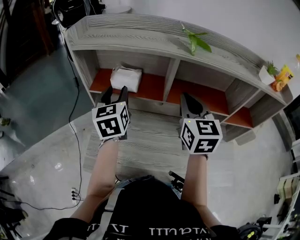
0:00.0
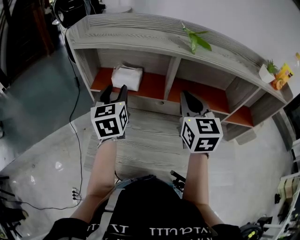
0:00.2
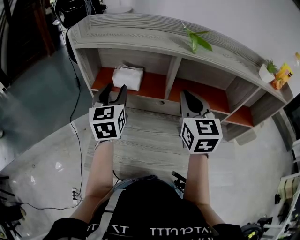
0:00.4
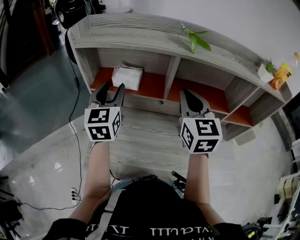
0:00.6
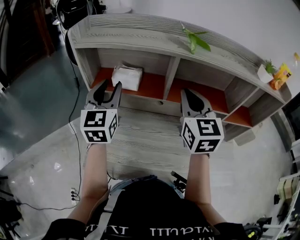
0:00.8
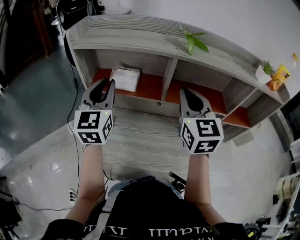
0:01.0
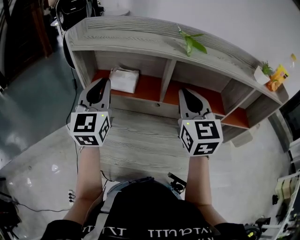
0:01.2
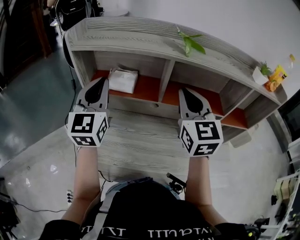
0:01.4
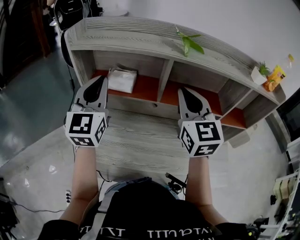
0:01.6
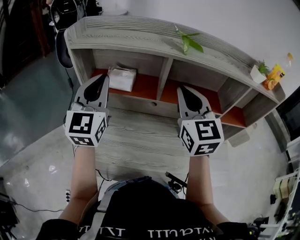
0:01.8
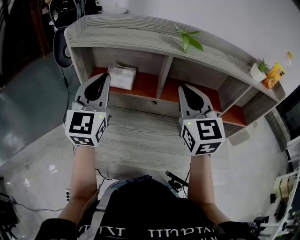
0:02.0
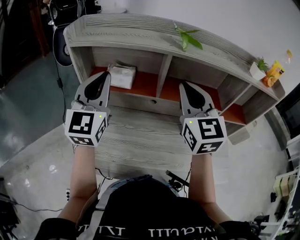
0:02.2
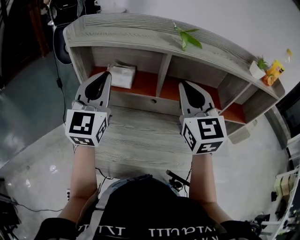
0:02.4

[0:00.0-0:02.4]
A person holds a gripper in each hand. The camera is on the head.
0:00.0 to 0:01.2: The left gripper travels upward by roughly 10 cm, turns by approximately 30 degrees, and closes its fingers.
0:01.2 to 0:02.4: The grippers move only a little.

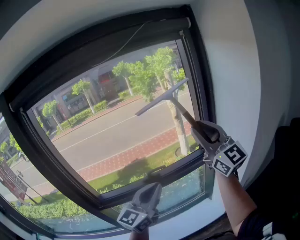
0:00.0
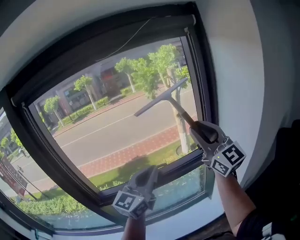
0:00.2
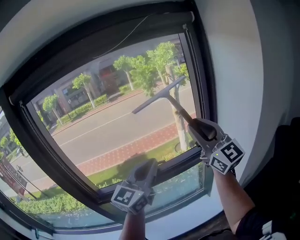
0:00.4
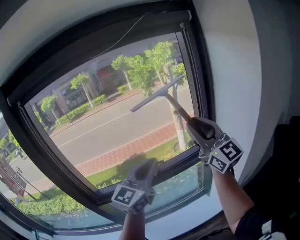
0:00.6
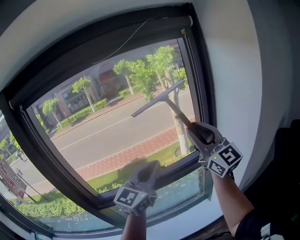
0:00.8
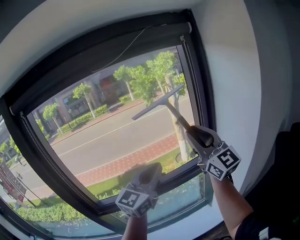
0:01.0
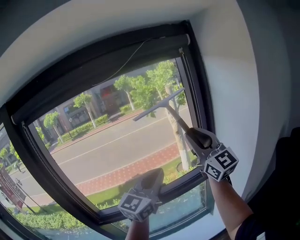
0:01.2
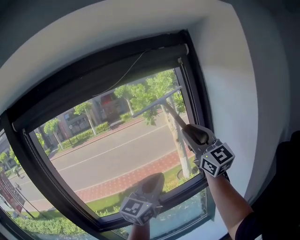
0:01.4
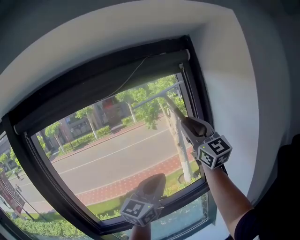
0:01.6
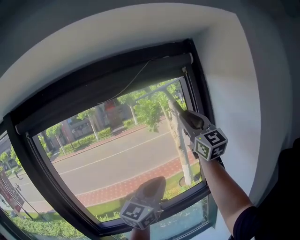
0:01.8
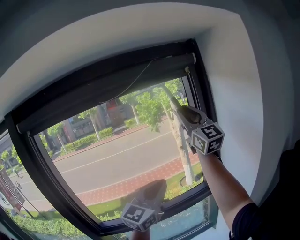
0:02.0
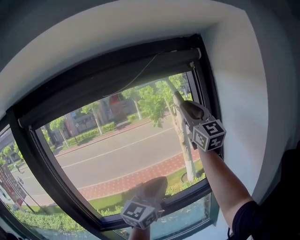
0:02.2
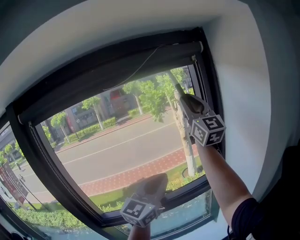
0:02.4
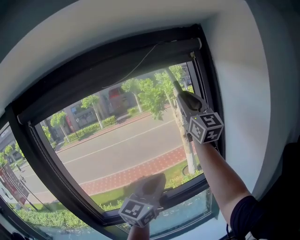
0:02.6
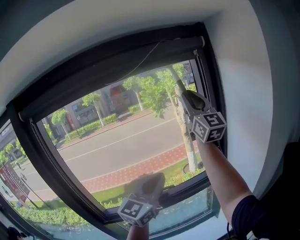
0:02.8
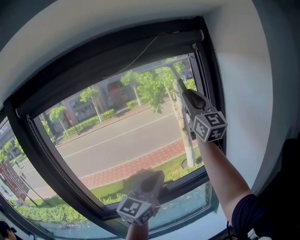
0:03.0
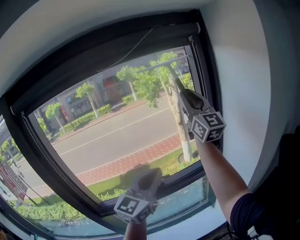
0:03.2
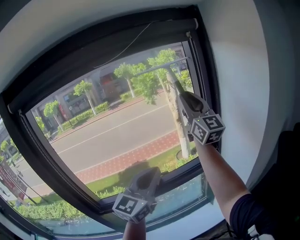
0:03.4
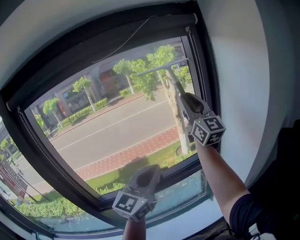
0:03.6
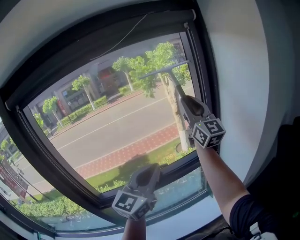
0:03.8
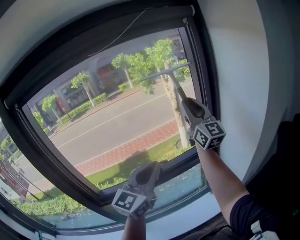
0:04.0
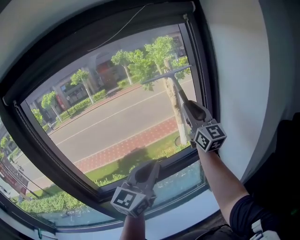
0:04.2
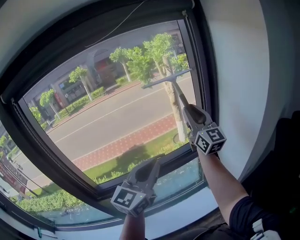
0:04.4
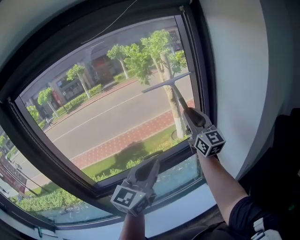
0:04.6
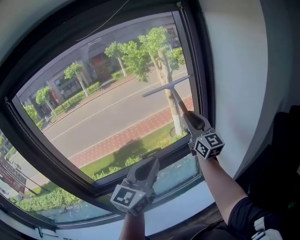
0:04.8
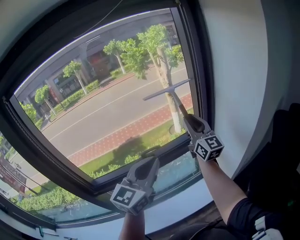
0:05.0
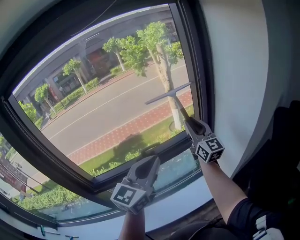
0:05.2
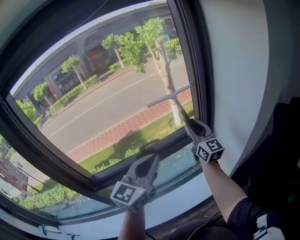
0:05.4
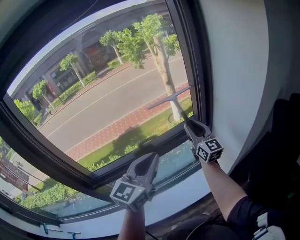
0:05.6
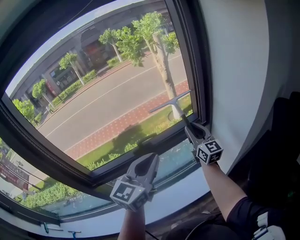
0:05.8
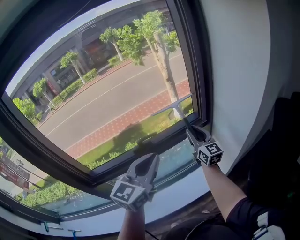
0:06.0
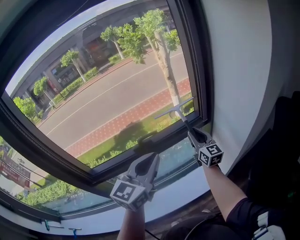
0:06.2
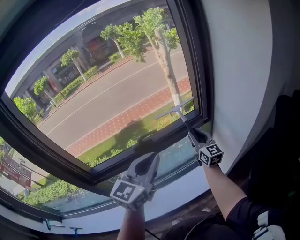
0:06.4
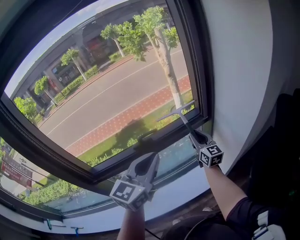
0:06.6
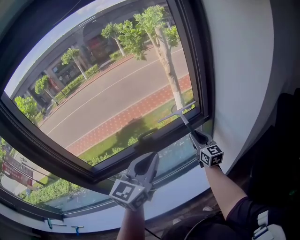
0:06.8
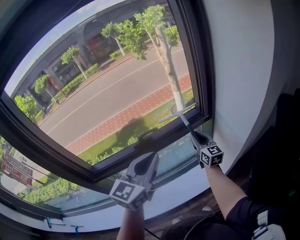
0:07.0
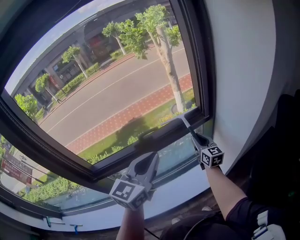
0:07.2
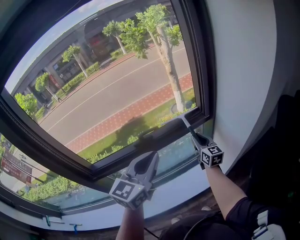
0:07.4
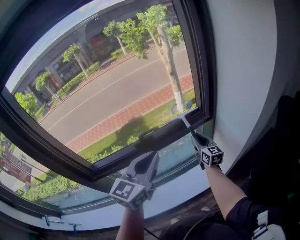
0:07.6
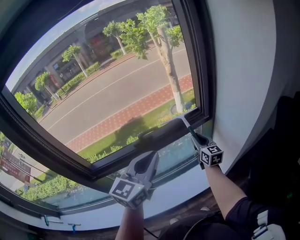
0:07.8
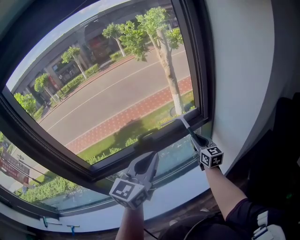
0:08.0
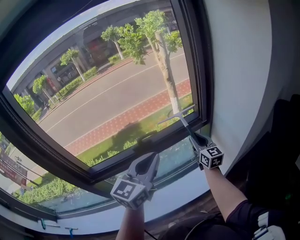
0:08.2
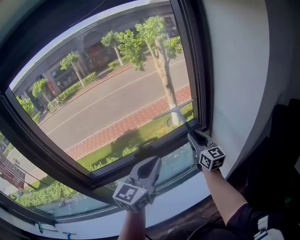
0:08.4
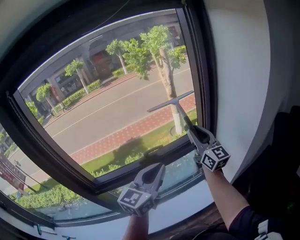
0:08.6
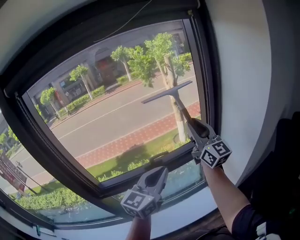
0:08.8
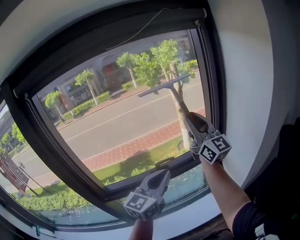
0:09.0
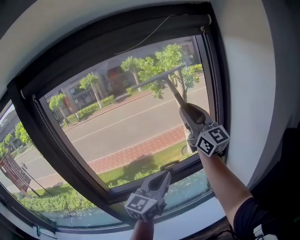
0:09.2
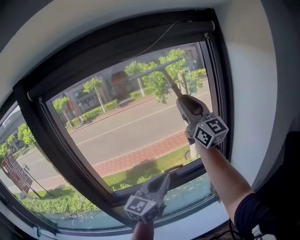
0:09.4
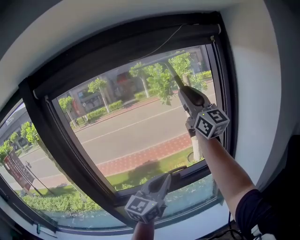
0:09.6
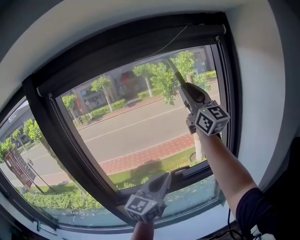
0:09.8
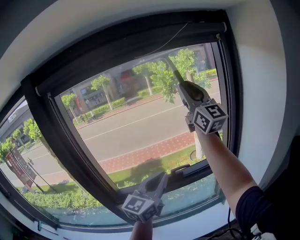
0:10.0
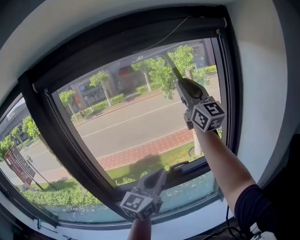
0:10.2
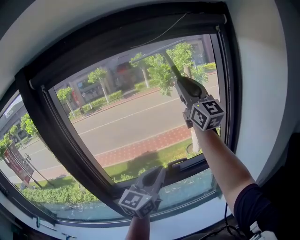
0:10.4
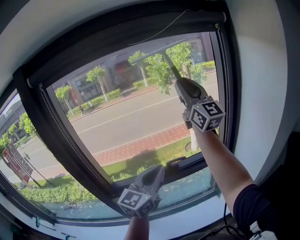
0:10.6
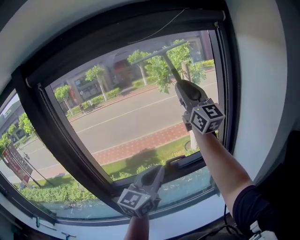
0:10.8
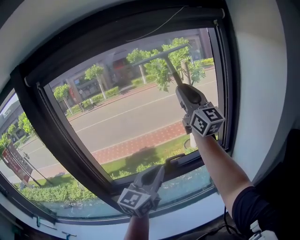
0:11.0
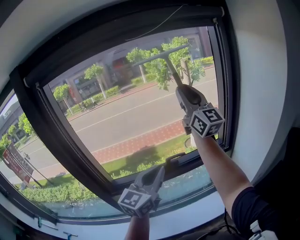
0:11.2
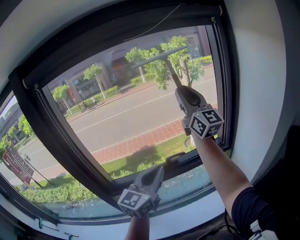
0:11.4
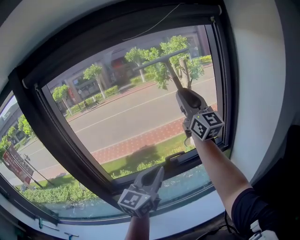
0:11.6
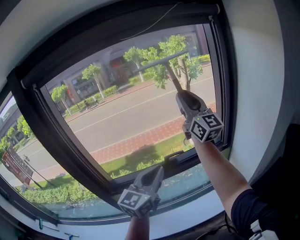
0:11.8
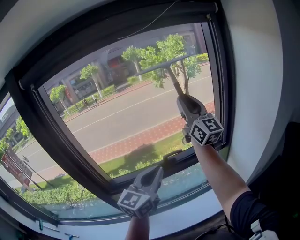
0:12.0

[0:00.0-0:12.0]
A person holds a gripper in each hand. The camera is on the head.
0:00.0 to 0:01.6: The right gripper moves upward and forward, roughly 15 cm. The left gripper is displaced upward, forward and to the right by some 15 cm.
0:01.6 to 0:03.0: The right gripper changes place by about 5 cm. Meanwhile the left gripper moves some 5 cm.
0:03.0 to 0:04.4: The right gripper is displaced downward by some 20 cm; the left gripper is displaced downward by about 5 cm.
0:04.4 to 0:06.0: The left gripper is displaced downward by some 5 cm; the right gripper goes approximately 25 cm downward, and changes its angle by some 20 degrees.
0:06.0 to 0:07.6: The right gripper heads downward, covering some 10 cm.
0:07.6 to 0:09.0: The right gripper heads upward, covering some 40 cm, and angles its fingers upward, by some 40 degrees.
0:09.0 to 0:10.4: The left gripper is displaced to the left by approximately 5 cm, while the right gripper goes about 15 cm upward and to the left.
0:10.4 to 0:12.0: The right gripper heads downward, covering approximately 10 cm.

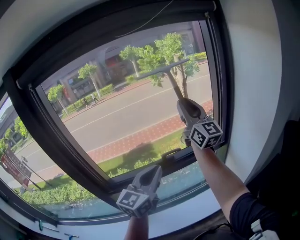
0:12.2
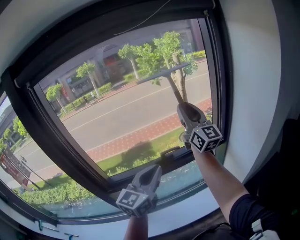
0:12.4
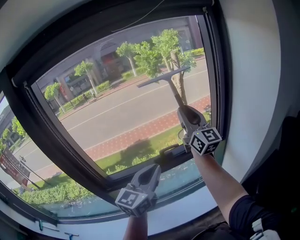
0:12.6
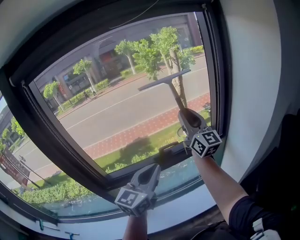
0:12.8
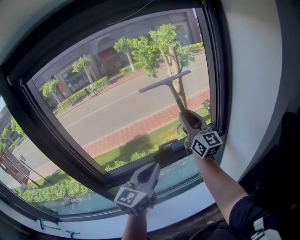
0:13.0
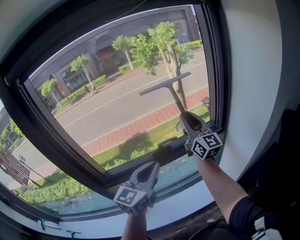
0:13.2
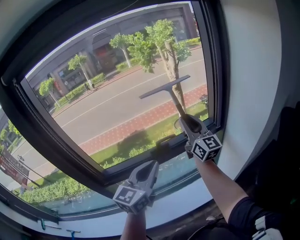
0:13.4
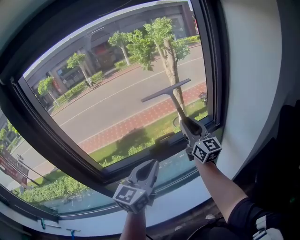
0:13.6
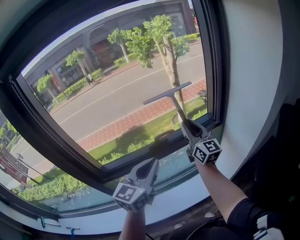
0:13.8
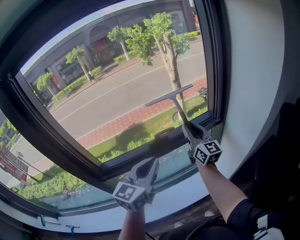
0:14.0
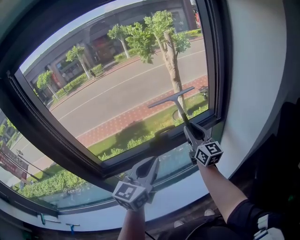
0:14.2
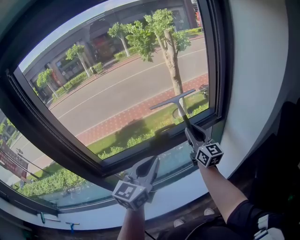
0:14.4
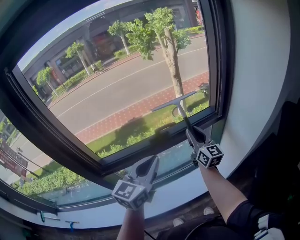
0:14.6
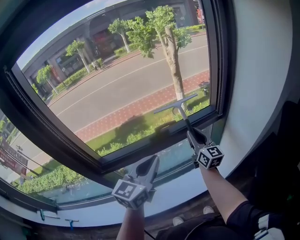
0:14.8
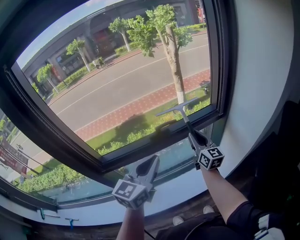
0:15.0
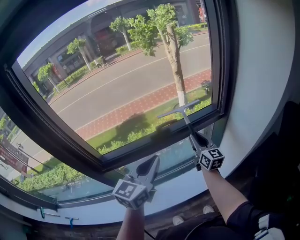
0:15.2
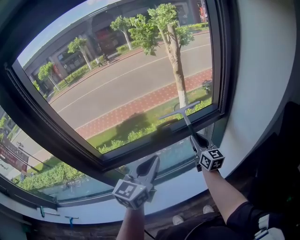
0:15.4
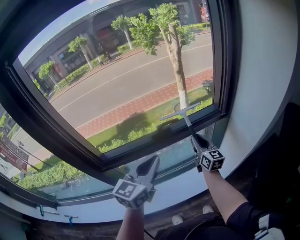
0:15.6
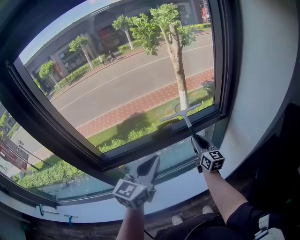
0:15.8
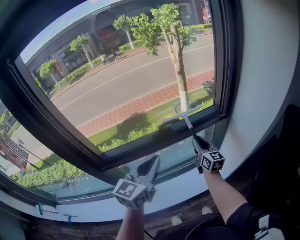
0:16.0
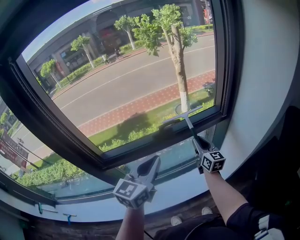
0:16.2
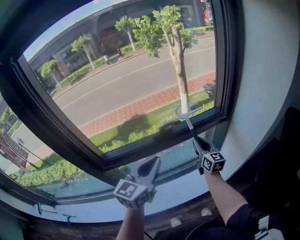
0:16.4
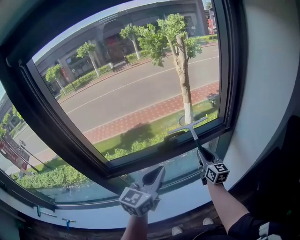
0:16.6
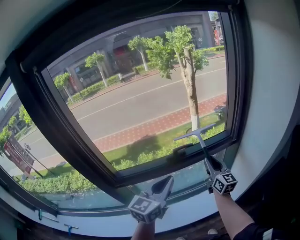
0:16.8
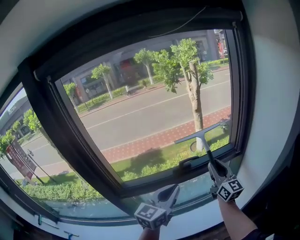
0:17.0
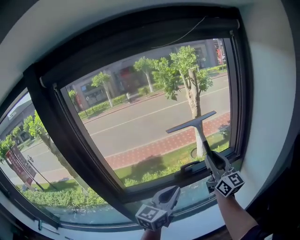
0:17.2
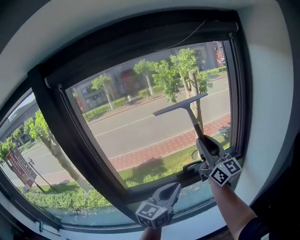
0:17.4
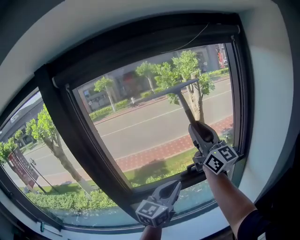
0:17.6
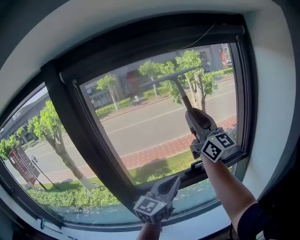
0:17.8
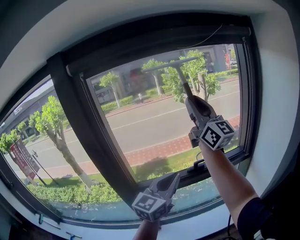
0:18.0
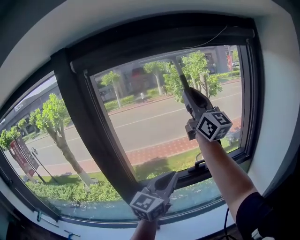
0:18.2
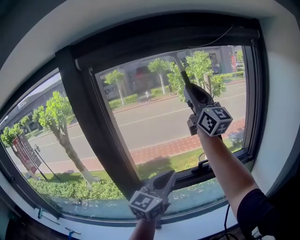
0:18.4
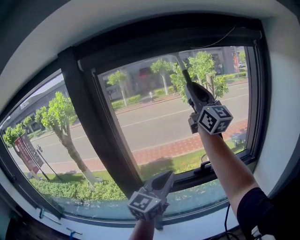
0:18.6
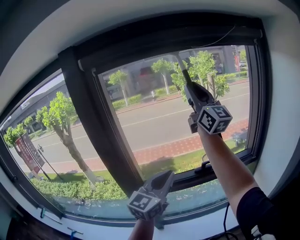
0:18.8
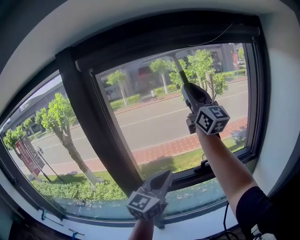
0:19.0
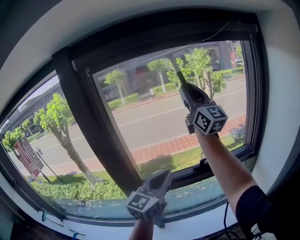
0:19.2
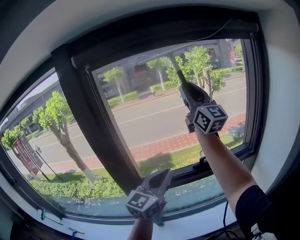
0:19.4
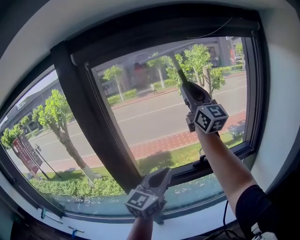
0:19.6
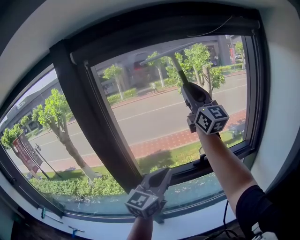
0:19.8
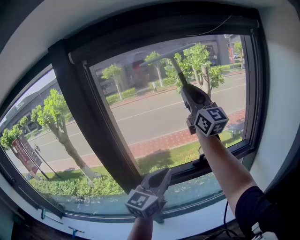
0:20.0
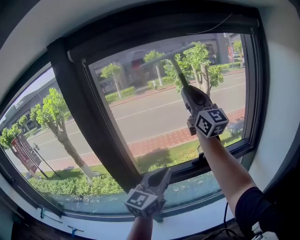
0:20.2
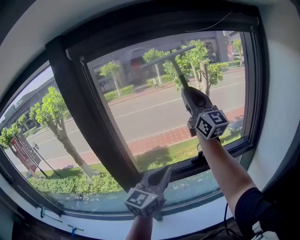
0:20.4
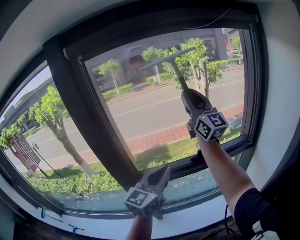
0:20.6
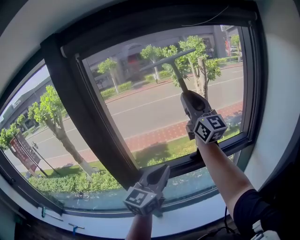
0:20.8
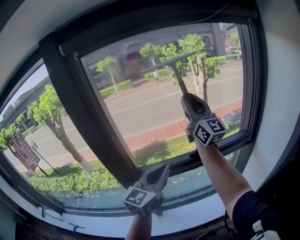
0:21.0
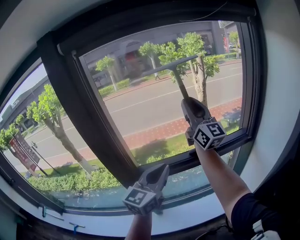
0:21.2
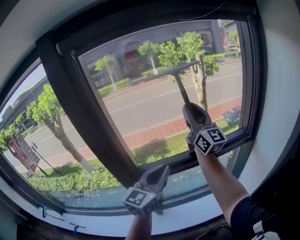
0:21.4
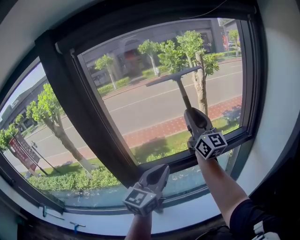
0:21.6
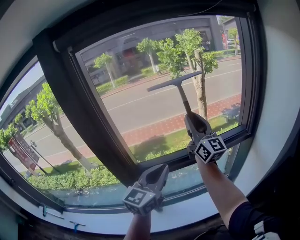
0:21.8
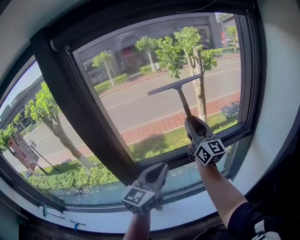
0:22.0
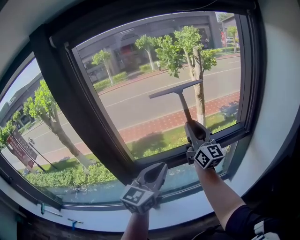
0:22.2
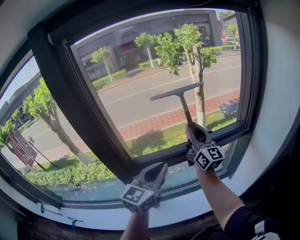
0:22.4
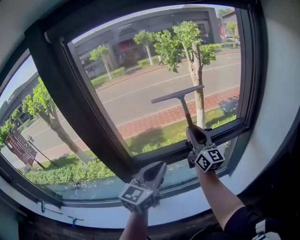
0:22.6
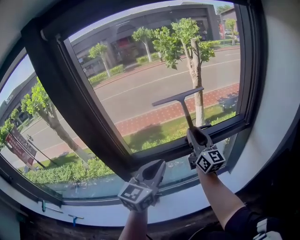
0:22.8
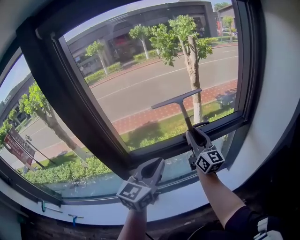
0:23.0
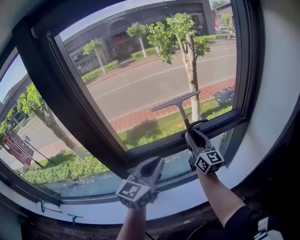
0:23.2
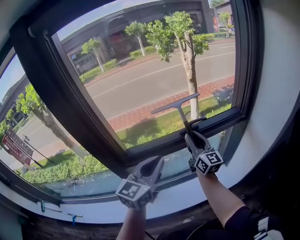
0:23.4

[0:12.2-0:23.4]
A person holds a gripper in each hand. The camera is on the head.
0:12.2 to 0:13.8: The right gripper moves downward, about 20 cm.
0:13.8 to 0:15.4: The right gripper moves downward, about 15 cm.
0:15.4 to 0:17.0: The right gripper shifts roughly 15 cm upward.
0:17.0 to 0:18.6: The left gripper is displaced upward and to the left by some 15 cm, while the right gripper shifts some 40 cm upward and to the left, and rotates roughly 30 degrees.
0:18.6 to 0:20.2: The right gripper goes approximately 5 cm downward.
0:20.2 to 0:21.8: The right gripper travels downward by approximately 15 cm.
0:21.8 to 0:23.4: The right gripper goes approximately 20 cm downward.
